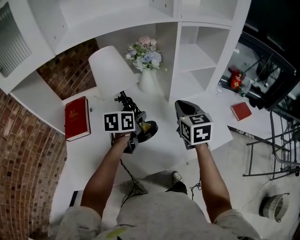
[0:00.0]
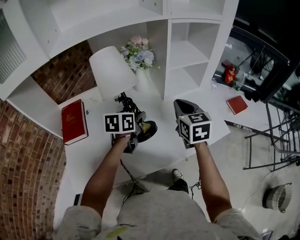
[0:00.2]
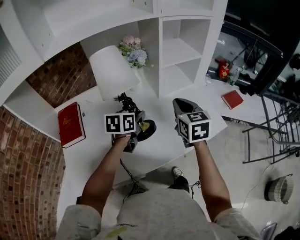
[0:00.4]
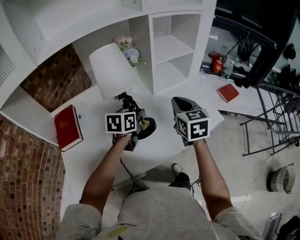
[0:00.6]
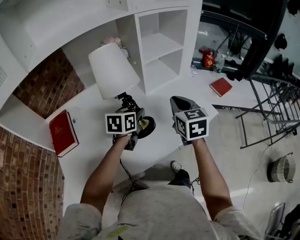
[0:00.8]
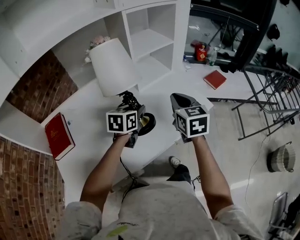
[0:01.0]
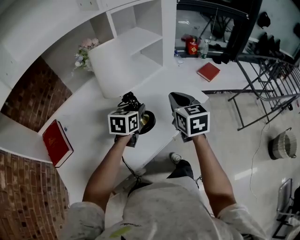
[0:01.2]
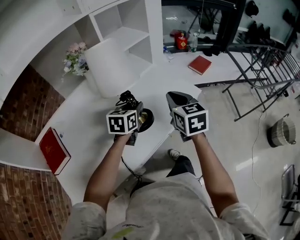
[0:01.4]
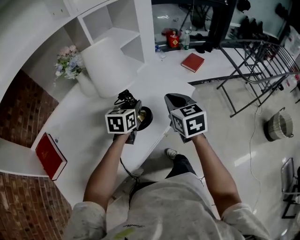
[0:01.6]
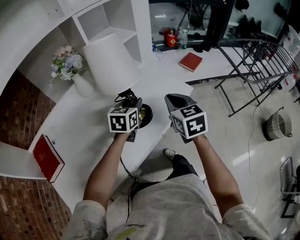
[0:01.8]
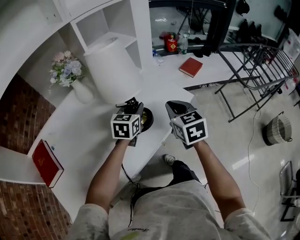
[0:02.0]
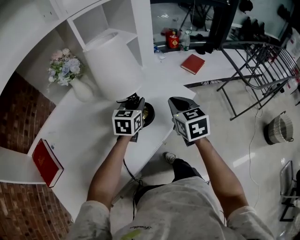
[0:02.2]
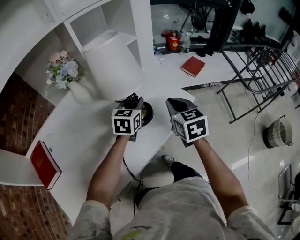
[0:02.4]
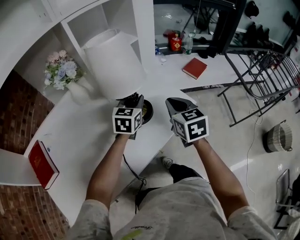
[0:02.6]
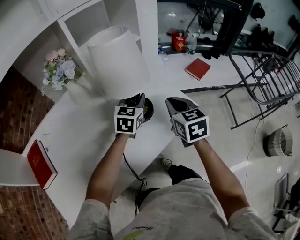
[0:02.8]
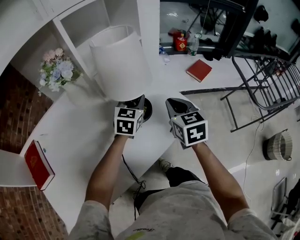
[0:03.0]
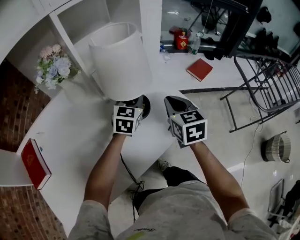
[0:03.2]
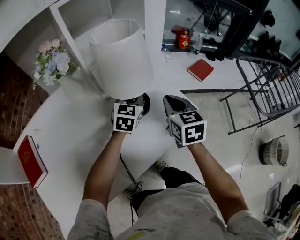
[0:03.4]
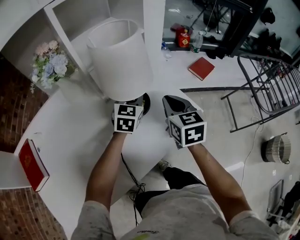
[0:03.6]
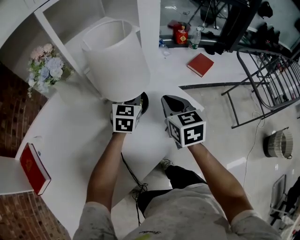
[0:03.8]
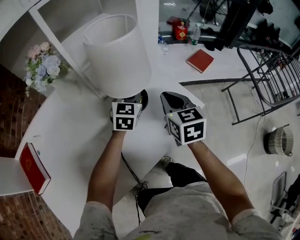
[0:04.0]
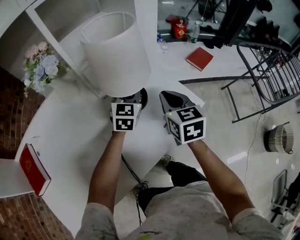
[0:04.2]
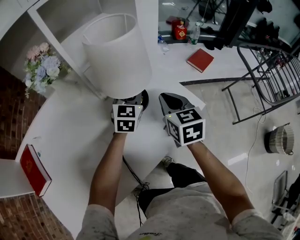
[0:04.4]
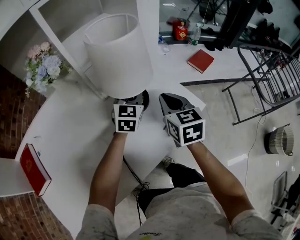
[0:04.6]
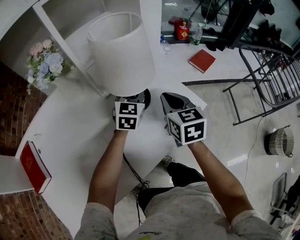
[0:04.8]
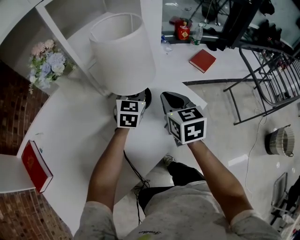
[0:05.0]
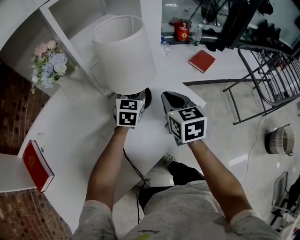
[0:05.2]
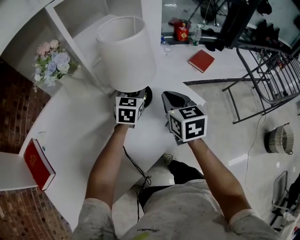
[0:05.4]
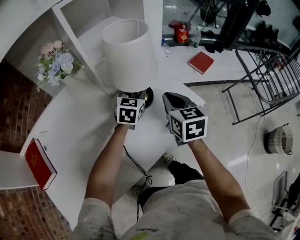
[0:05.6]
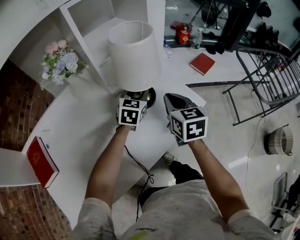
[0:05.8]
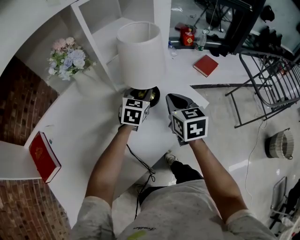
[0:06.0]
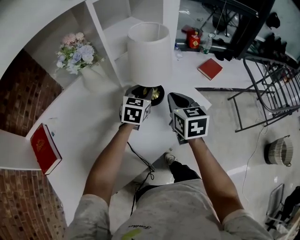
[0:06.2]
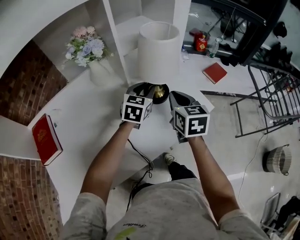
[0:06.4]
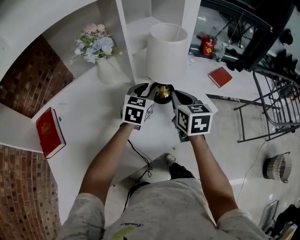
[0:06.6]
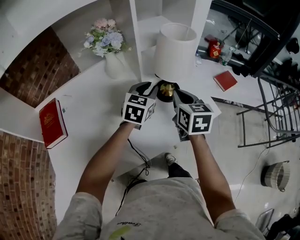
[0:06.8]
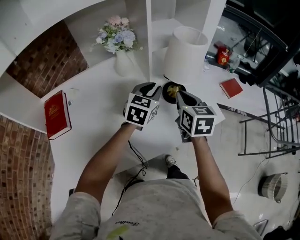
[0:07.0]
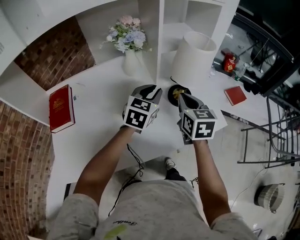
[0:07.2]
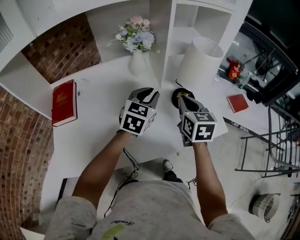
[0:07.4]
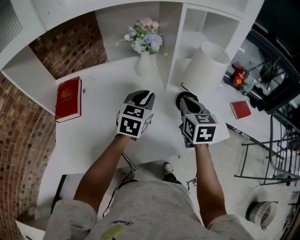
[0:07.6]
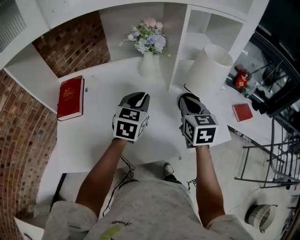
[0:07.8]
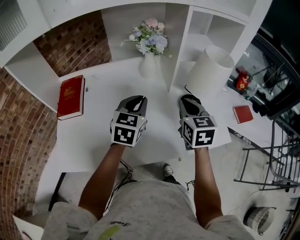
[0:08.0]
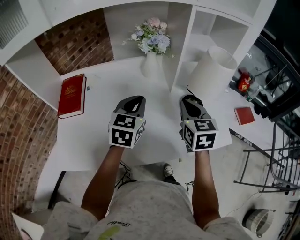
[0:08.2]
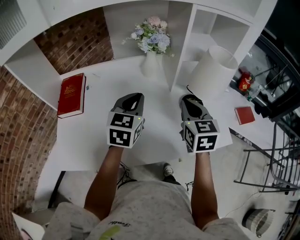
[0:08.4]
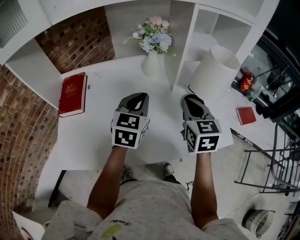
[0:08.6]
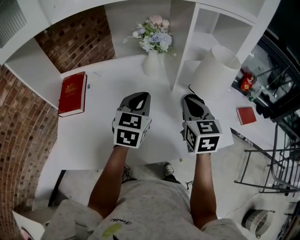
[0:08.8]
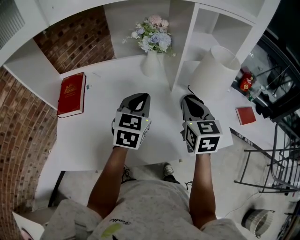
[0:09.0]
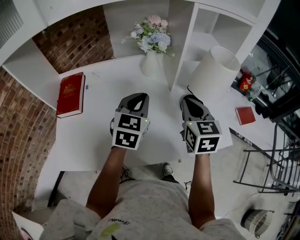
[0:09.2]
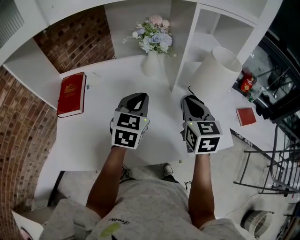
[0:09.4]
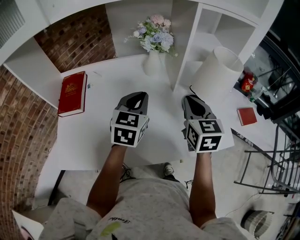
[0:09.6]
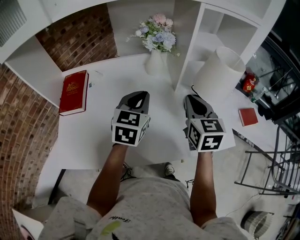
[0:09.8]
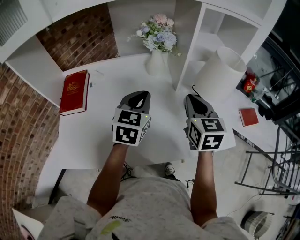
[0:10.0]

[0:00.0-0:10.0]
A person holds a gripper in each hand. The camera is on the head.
0:00.0 to 0:01.4: The left gripper goes approximately 15 cm to the right, and turns by approximately 30 degrees. The right gripper shifts approximately 15 cm to the right and backward, and swivels approximately 20 degrees.
0:01.4 to 0:02.8: The left gripper moves forward and to the right, some 15 cm. The right gripper travels forward by roughly 10 cm.
0:02.8 to 0:04.2: The right gripper ends up roughly 5 cm from where it was. The left gripper travels forward by some 5 cm.
0:04.2 to 0:05.8: The right gripper shifts by approximately 5 cm.
0:05.8 to 0:07.2: The right gripper shifts approximately 10 cm to the left; the left gripper travels to the left, upward and backward by roughly 20 cm.
0:07.2 to 0:08.6: The right gripper travels to the left by roughly 5 cm, while the left gripper heads to the left, covering approximately 10 cm, and turns by about 20 degrees.
0:08.6 to 0:10.0: The grippers move only a little.

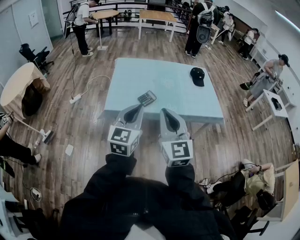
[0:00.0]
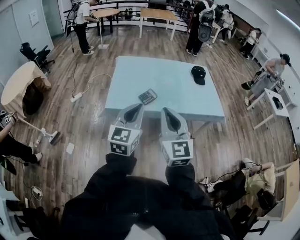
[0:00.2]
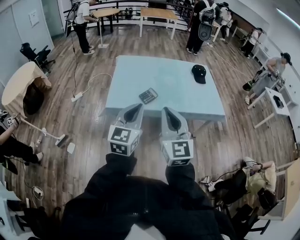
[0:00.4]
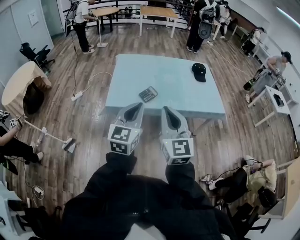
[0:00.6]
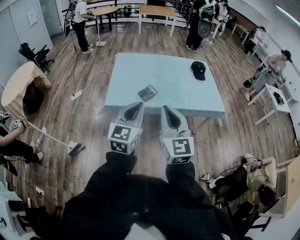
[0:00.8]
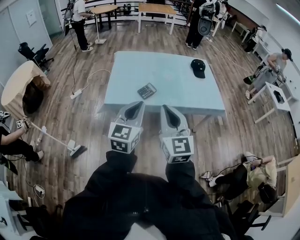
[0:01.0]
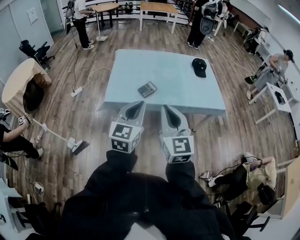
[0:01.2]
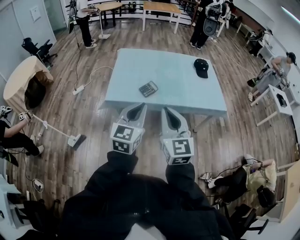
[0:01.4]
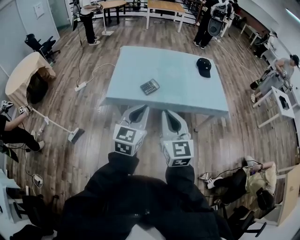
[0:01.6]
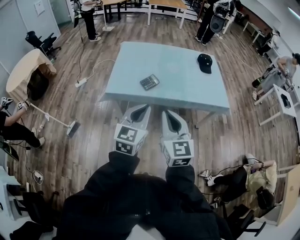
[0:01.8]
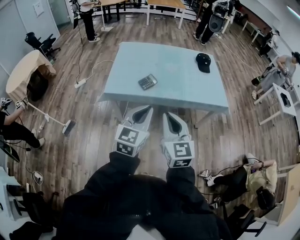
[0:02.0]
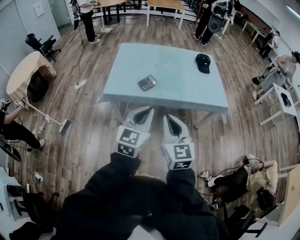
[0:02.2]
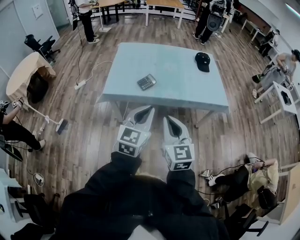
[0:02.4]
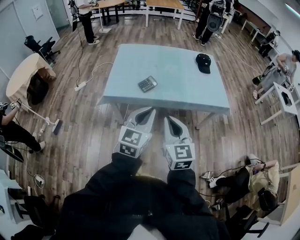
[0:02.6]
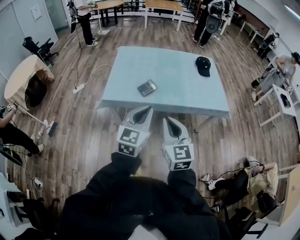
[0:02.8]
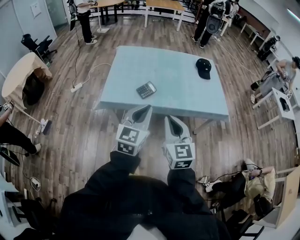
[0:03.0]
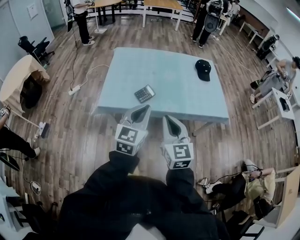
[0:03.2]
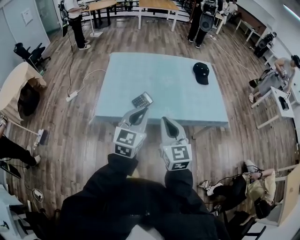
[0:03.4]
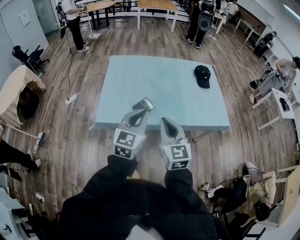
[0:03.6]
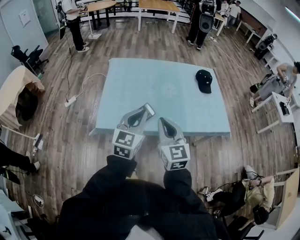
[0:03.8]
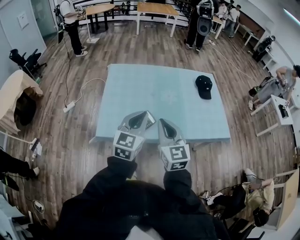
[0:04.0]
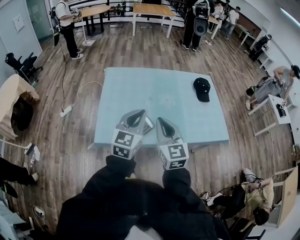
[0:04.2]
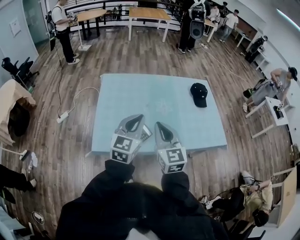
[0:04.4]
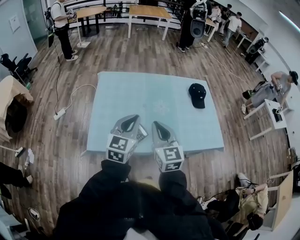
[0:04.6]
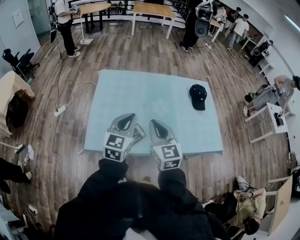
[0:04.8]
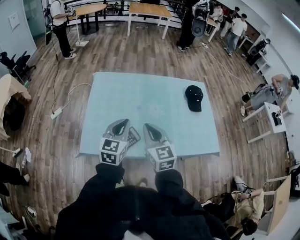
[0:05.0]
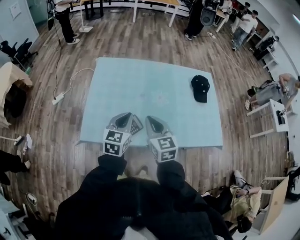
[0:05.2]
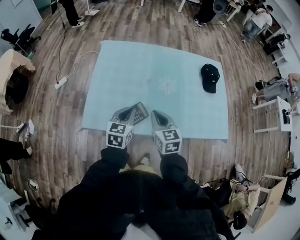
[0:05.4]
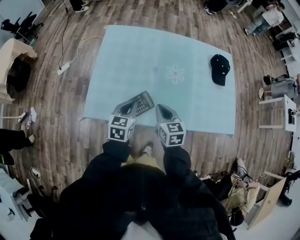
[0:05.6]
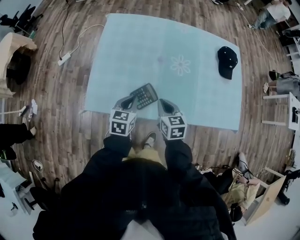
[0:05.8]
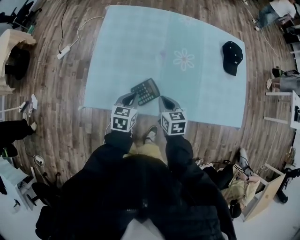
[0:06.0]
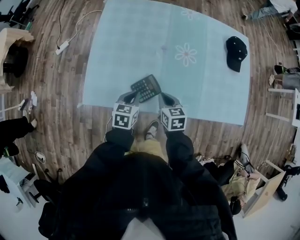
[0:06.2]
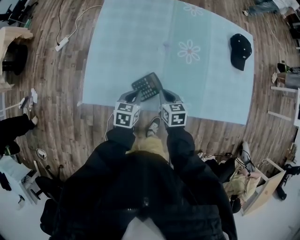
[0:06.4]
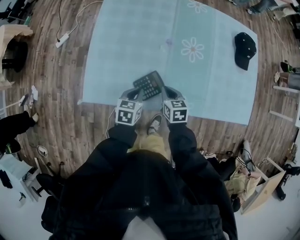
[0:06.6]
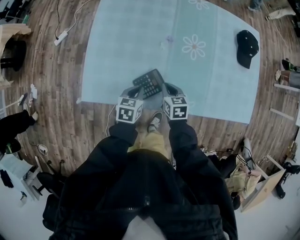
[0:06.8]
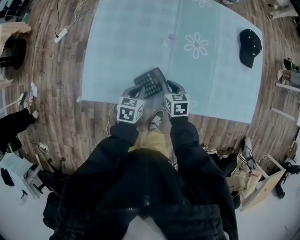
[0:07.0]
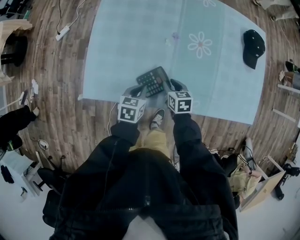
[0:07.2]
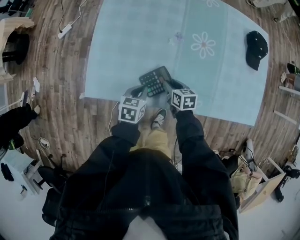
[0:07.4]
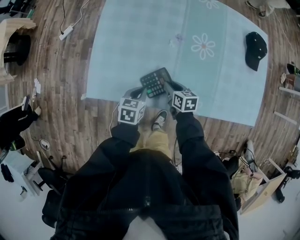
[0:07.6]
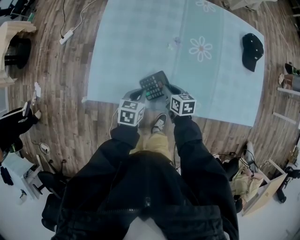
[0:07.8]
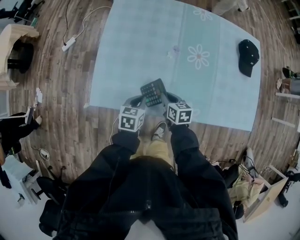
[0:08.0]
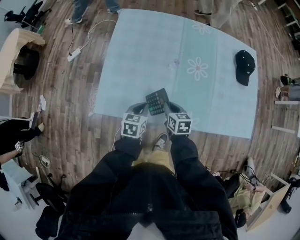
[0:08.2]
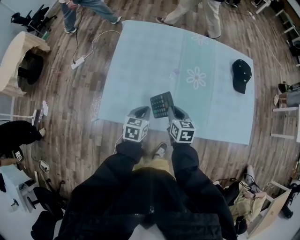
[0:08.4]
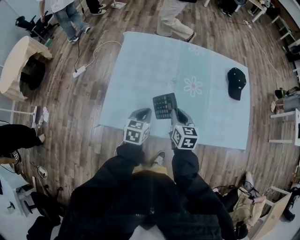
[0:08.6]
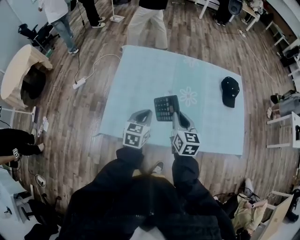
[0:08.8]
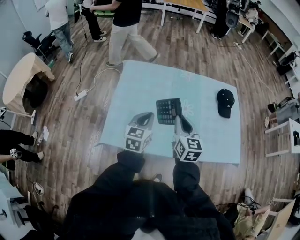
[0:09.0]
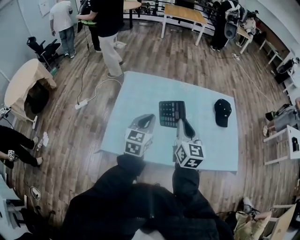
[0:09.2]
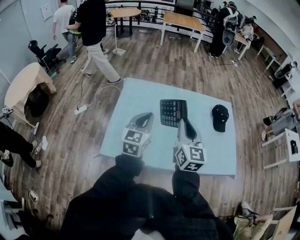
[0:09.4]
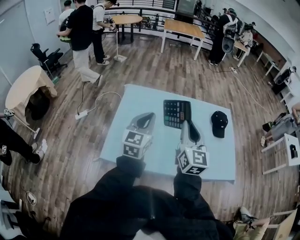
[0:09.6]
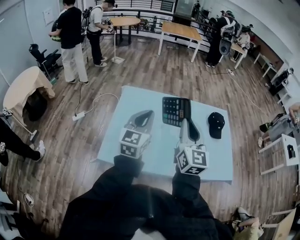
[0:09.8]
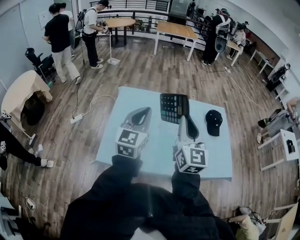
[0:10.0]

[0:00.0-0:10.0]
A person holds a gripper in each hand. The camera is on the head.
0:00.0 to 0:01.4: There are only small adjustments of the grippers.
0:01.4 to 0:02.8: The left gripper ends up approximately 5 cm from where it was. The right gripper shifts roughly 5 cm downward.
0:02.8 to 0:04.2: Both grippers move forward, about 30 cm.
0:04.2 to 0:05.8: The left gripper moves downward, roughly 25 cm, and swivels some 40 degrees; the right gripper goes roughly 25 cm downward and forward, and angles its fingers downward, by some 30 degrees.
0:05.8 to 0:07.2: Both grippers travel together downward, roughly 15 cm. The right gripper opens.
0:07.2 to 0:08.6: Both grippers travel together upward, about 20 cm. The right gripper swivels about 20 degrees.
0:08.6 to 0:10.0: The grippers both shift upward by roughly 35 cm. The left gripper tilts its fingers about 40 degrees upward. The right gripper tilts its fingers roughly 40 degrees upward.

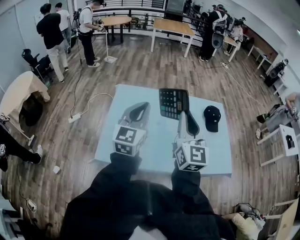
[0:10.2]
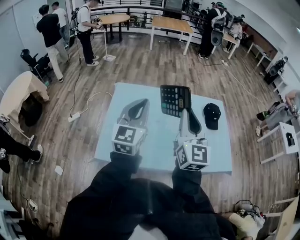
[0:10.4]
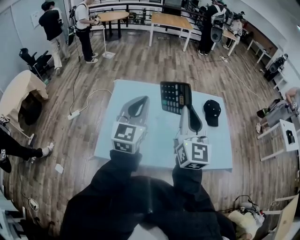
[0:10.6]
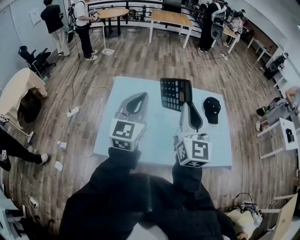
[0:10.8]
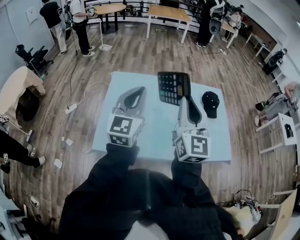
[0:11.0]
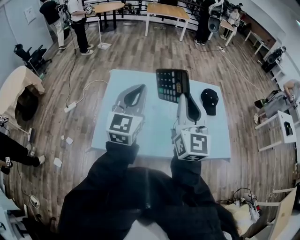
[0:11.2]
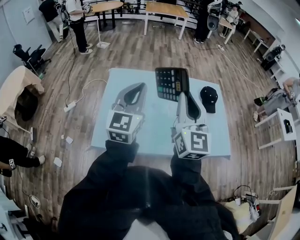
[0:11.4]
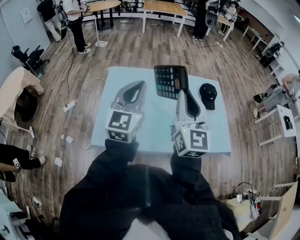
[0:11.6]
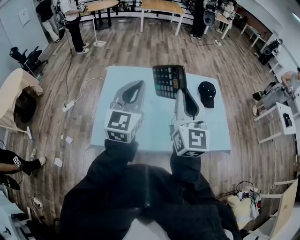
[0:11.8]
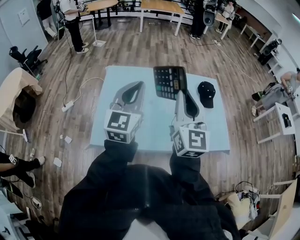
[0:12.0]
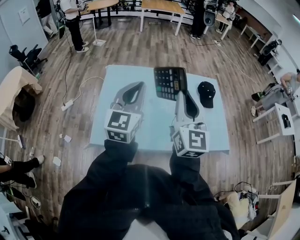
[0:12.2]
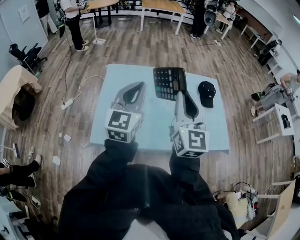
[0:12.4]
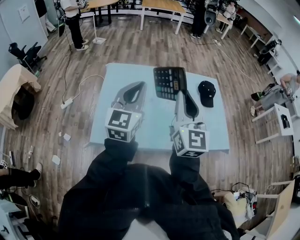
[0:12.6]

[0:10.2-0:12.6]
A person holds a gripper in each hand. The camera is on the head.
0:10.2 to 0:12.6: There are only small adjustments of the grippers.

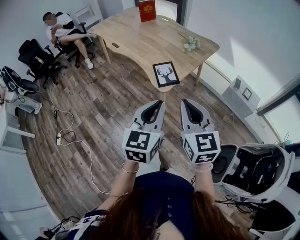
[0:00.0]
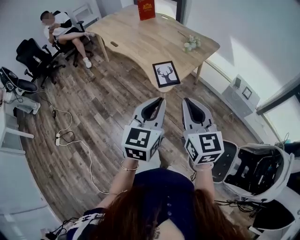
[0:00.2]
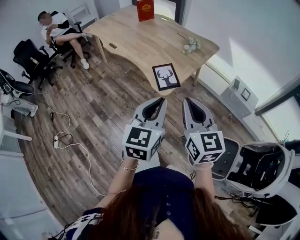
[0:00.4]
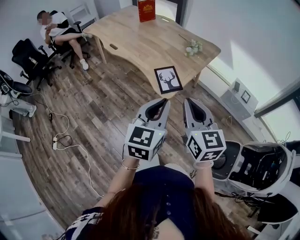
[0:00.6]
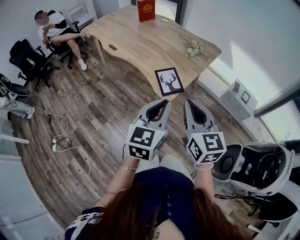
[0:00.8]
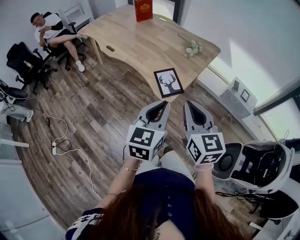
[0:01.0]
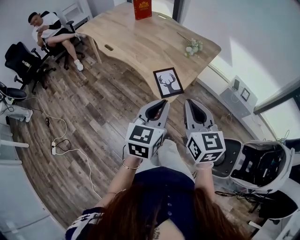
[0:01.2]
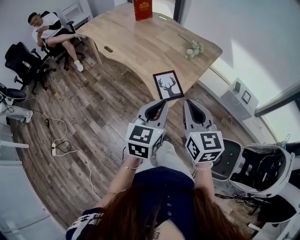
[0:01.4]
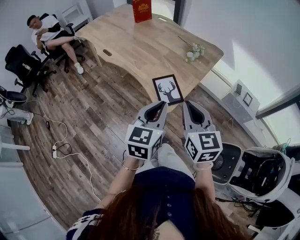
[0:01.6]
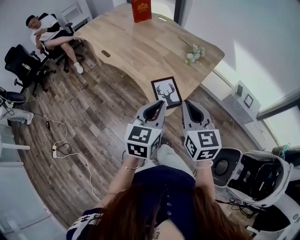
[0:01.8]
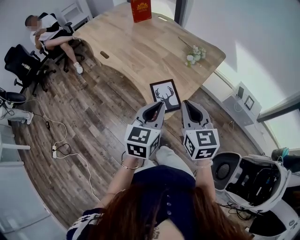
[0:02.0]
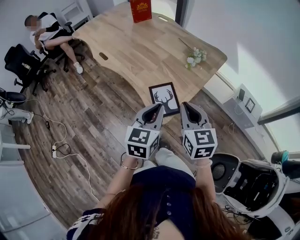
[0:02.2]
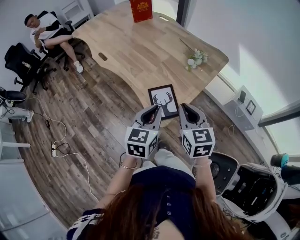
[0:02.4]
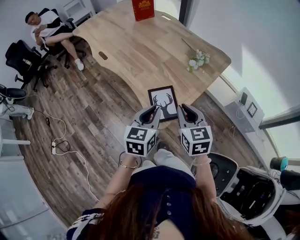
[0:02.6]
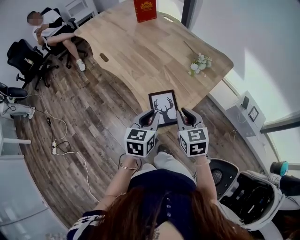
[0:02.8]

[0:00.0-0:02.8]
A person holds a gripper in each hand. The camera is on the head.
0:00.0 to 0:01.4: The grippers both shift forward by some 15 cm.
0:01.4 to 0:02.8: Both grippers travel together forward and downward, about 20 cm. The right gripper swivels about 20 degrees.
